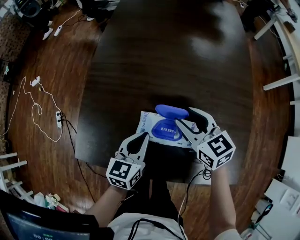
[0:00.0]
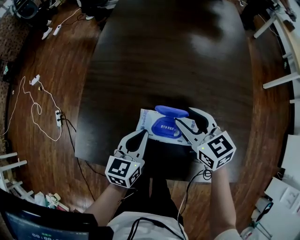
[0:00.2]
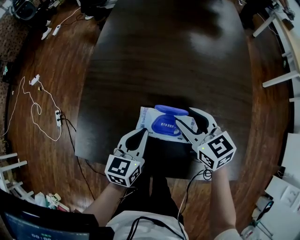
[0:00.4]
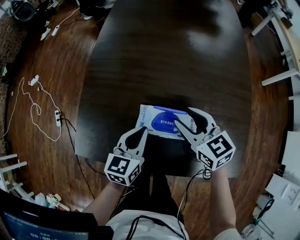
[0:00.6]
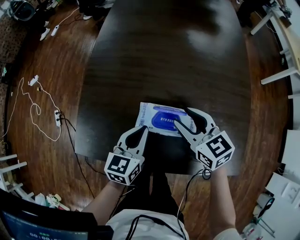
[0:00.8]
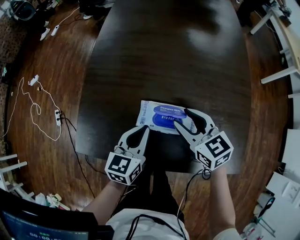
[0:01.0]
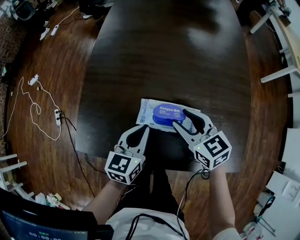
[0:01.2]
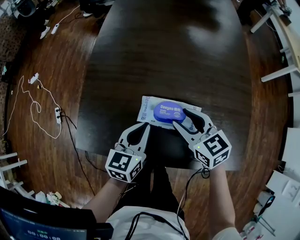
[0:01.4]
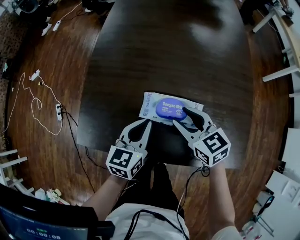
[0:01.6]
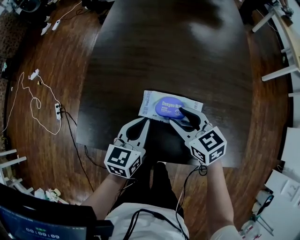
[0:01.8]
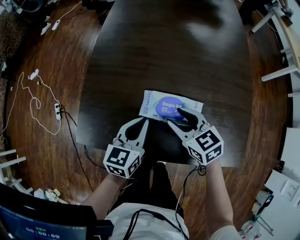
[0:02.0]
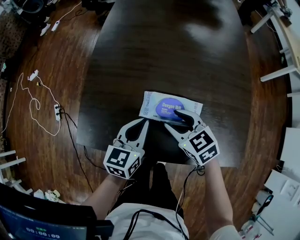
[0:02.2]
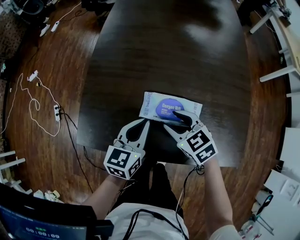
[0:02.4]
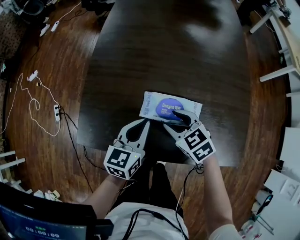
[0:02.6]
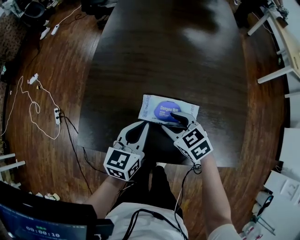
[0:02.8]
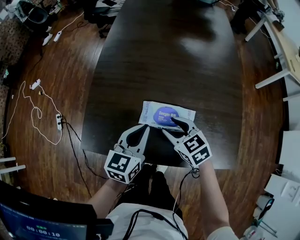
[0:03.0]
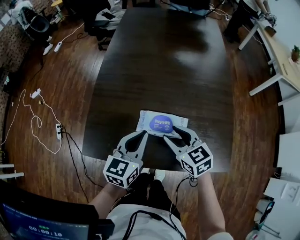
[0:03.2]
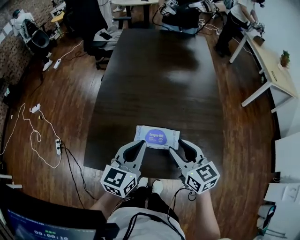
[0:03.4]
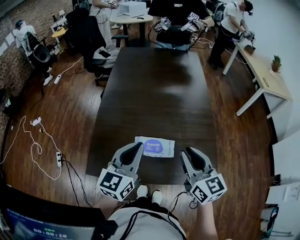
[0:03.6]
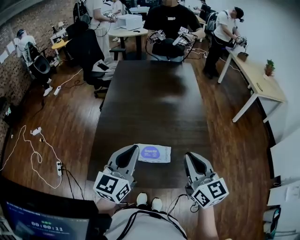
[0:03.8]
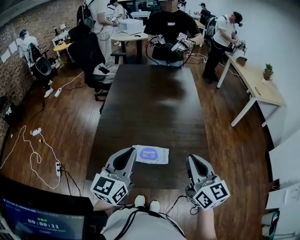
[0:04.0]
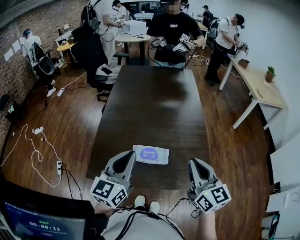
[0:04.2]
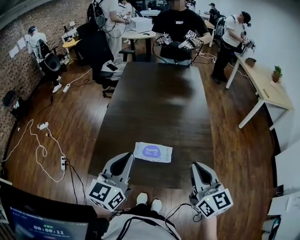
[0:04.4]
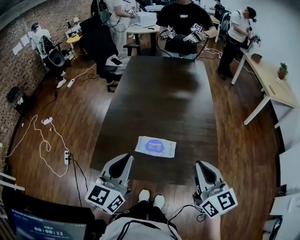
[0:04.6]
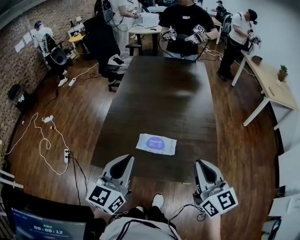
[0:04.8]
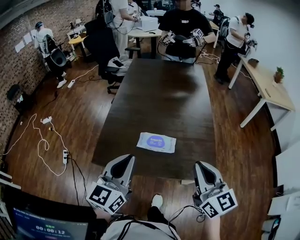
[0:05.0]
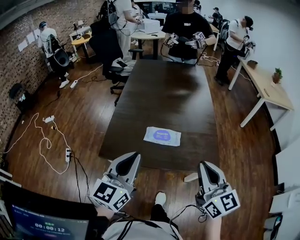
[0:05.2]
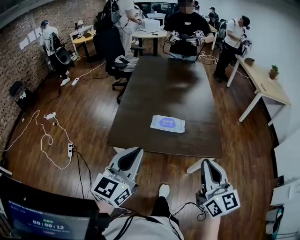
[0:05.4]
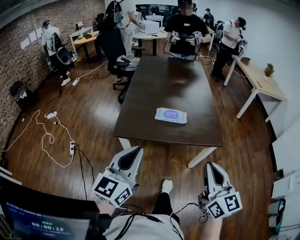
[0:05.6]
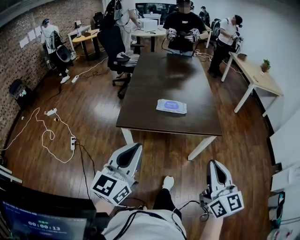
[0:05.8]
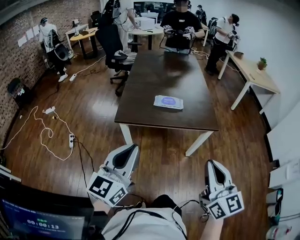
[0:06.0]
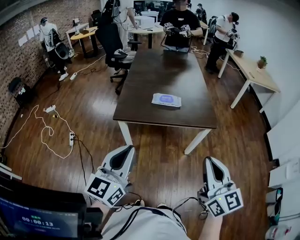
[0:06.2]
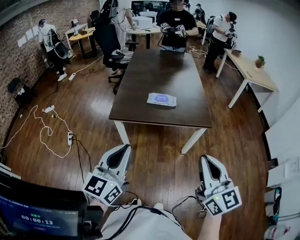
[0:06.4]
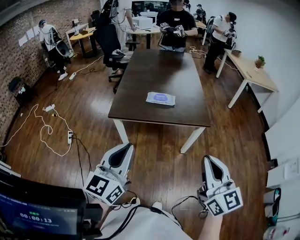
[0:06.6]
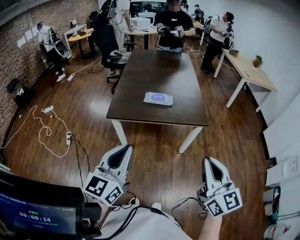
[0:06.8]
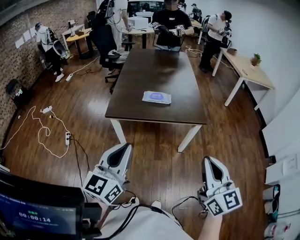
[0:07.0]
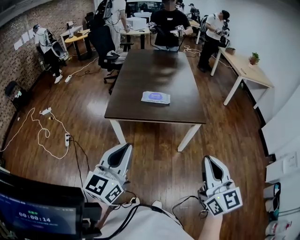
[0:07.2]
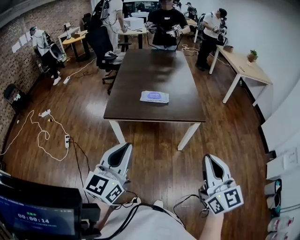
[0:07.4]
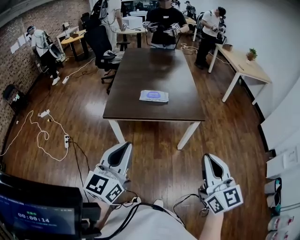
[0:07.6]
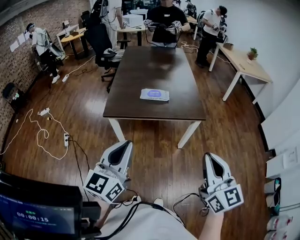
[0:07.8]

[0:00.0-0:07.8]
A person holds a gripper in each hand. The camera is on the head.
0.0 to 1.6 s: The right gripper heads backward, covering about 5 cm.
1.6 to 3.2 s: The right gripper ends up approximately 5 cm from where it was. The left gripper shifts roughly 10 cm upward.
3.2 to 4.6 s: The right gripper is displaced upward, to the right and backward by approximately 30 cm, rotates some 30 degrees, and closes up. The left gripper moves upward and backward, approximately 25 cm.
4.6 to 6.2 s: The pair of grippers is taken backward, approximately 50 cm.
6.2 to 7.8 s: The two grippers go approximately 5 cm to the right.

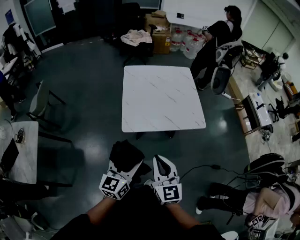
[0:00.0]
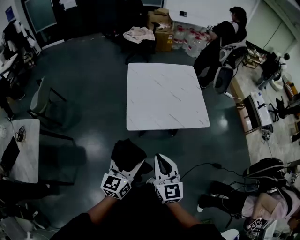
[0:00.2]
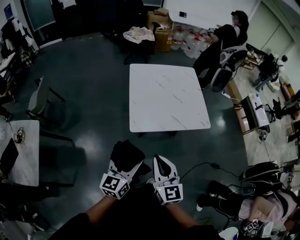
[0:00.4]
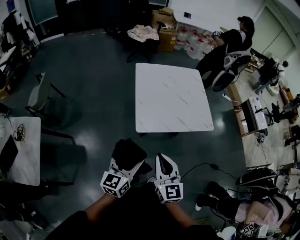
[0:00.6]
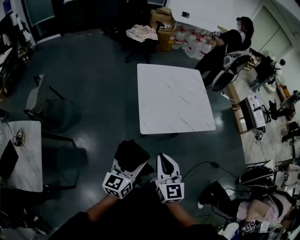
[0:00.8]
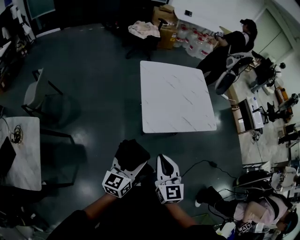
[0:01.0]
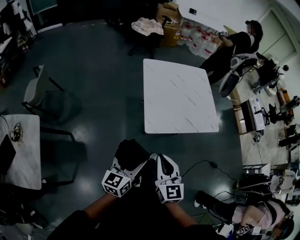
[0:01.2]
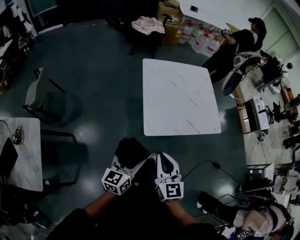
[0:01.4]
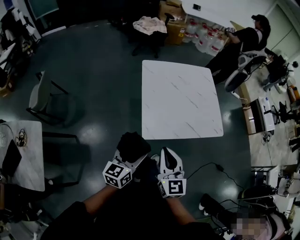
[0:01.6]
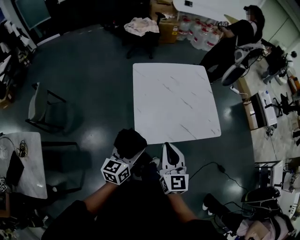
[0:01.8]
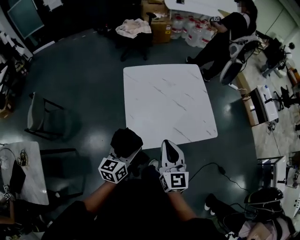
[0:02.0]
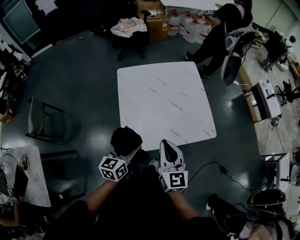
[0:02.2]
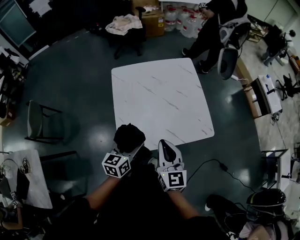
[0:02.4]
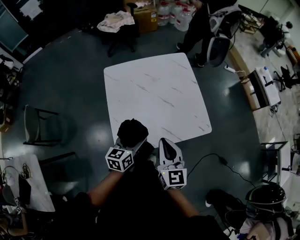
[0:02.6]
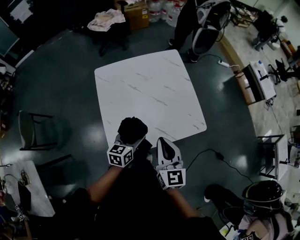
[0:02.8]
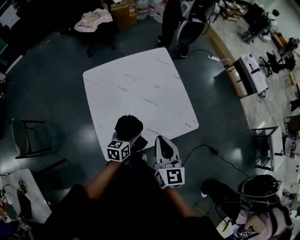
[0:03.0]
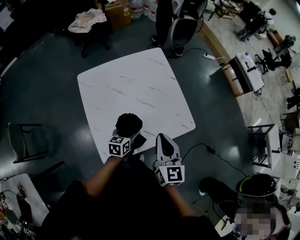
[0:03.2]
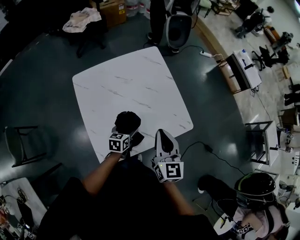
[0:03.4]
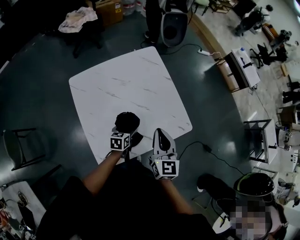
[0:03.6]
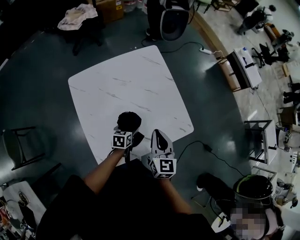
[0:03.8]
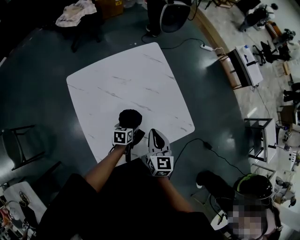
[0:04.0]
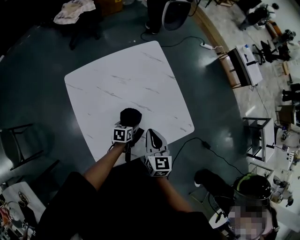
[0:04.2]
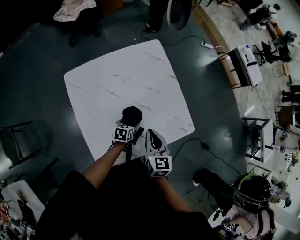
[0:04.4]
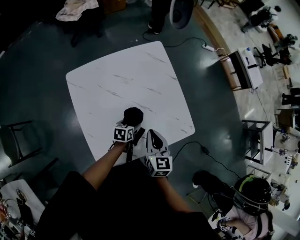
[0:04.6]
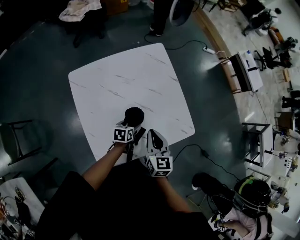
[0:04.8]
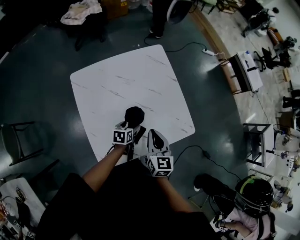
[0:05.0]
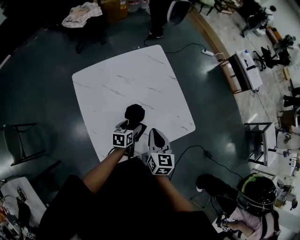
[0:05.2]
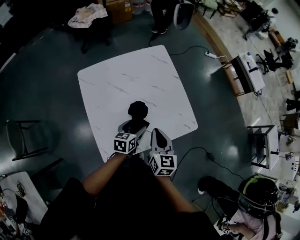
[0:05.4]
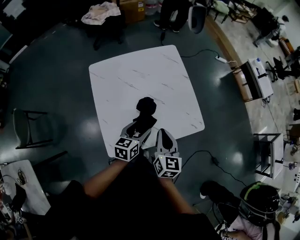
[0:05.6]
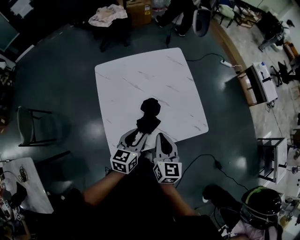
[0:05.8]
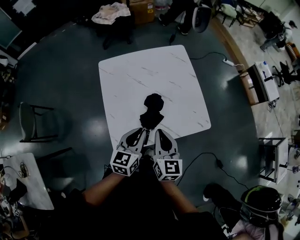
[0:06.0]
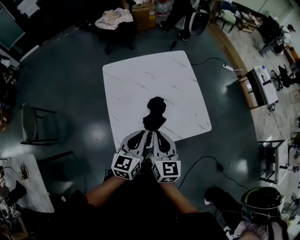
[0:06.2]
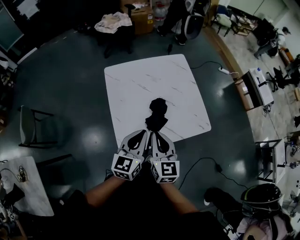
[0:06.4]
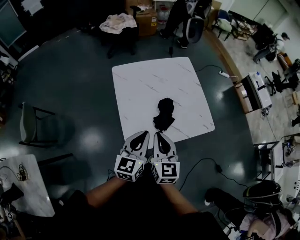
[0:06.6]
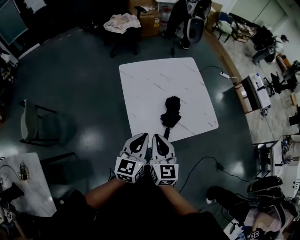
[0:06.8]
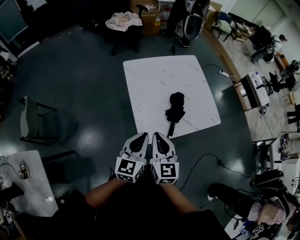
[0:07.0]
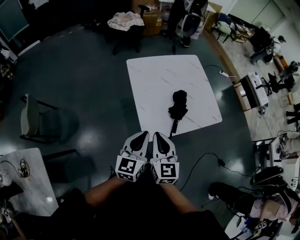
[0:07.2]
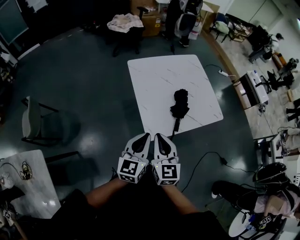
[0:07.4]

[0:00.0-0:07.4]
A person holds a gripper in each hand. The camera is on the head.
0.0 to 1.4 s: The left gripper goes some 20 cm to the left. The right gripper is displaced to the left and forward by about 20 cm.
1.4 to 3.0 s: The grippers both shift forward and to the right by about 40 cm. The right gripper changes its angle by roughly 20 degrees; the left gripper turns by about 30 degrees.
3.0 to 4.4 s: The grippers both shift downward and forward by some 20 cm. The left gripper swivels some 20 degrees.
4.4 to 6.0 s: The right gripper goes roughly 15 cm backward and upward. Meanwhile the left gripper goes approximately 30 cm upward and backward, angles its fingers upward, by approximately 30 degrees, and closes up.
6.0 to 7.4 s: The two grippers go approximately 30 cm to the left and backward.

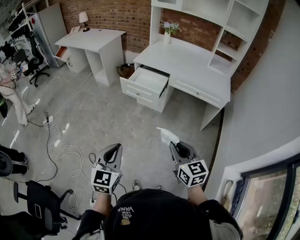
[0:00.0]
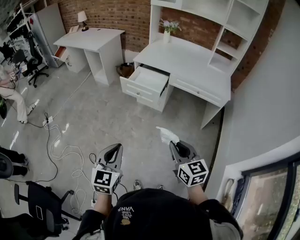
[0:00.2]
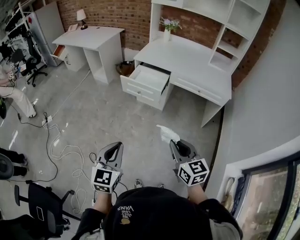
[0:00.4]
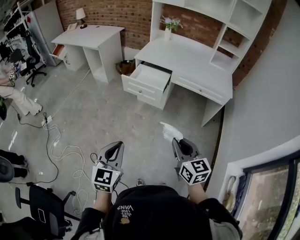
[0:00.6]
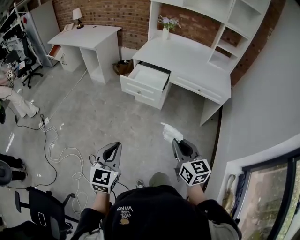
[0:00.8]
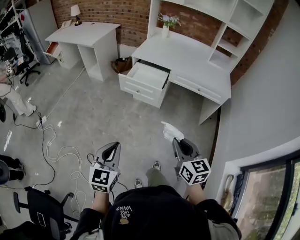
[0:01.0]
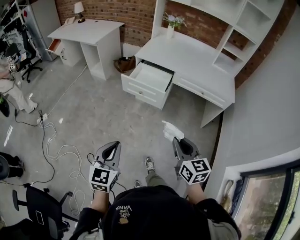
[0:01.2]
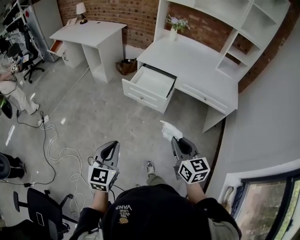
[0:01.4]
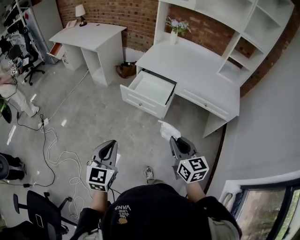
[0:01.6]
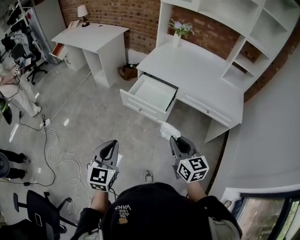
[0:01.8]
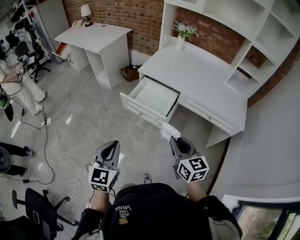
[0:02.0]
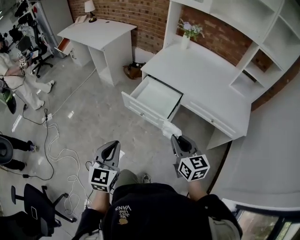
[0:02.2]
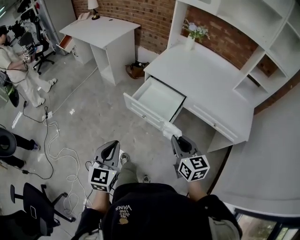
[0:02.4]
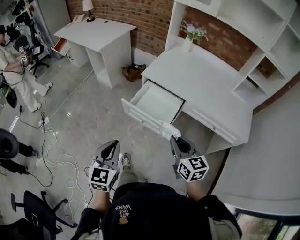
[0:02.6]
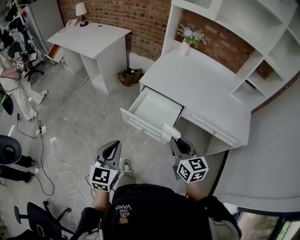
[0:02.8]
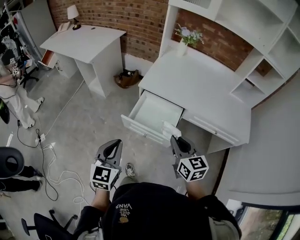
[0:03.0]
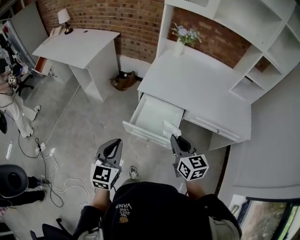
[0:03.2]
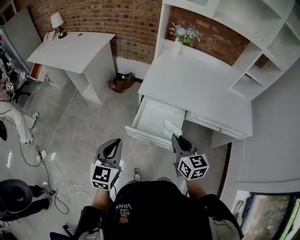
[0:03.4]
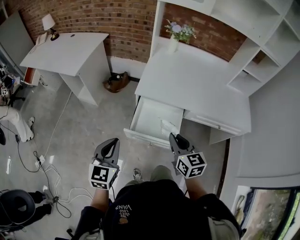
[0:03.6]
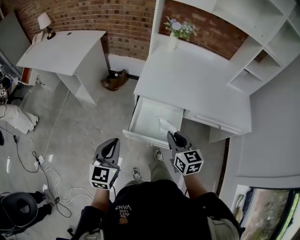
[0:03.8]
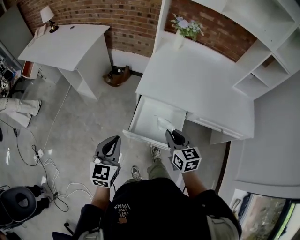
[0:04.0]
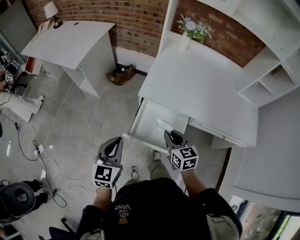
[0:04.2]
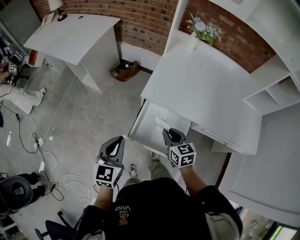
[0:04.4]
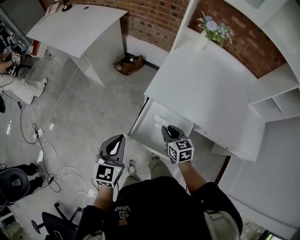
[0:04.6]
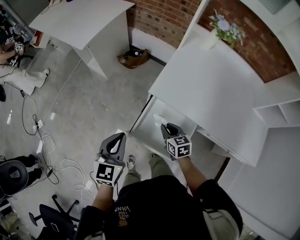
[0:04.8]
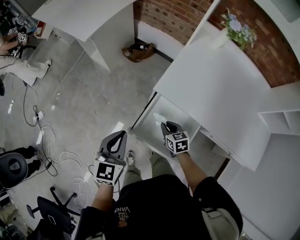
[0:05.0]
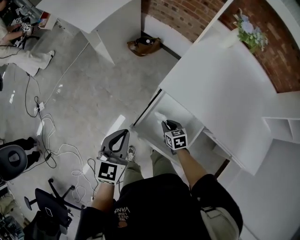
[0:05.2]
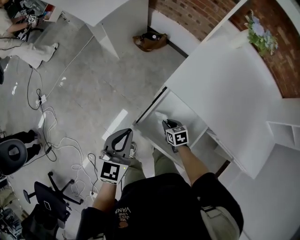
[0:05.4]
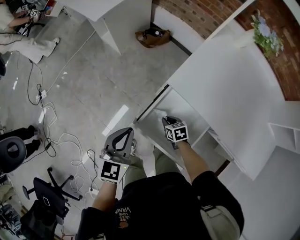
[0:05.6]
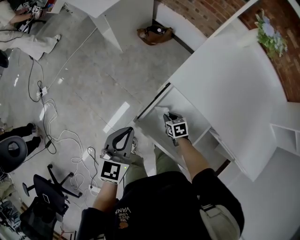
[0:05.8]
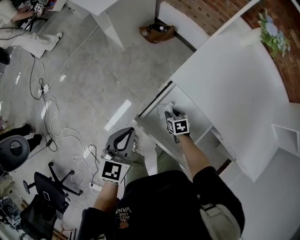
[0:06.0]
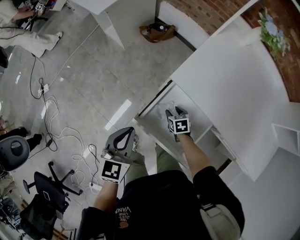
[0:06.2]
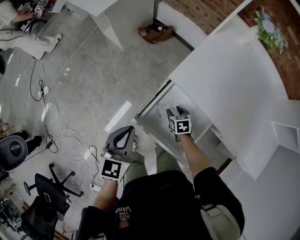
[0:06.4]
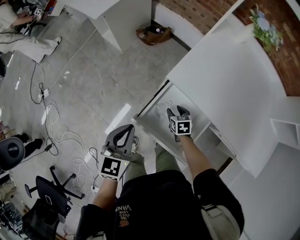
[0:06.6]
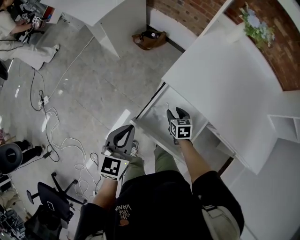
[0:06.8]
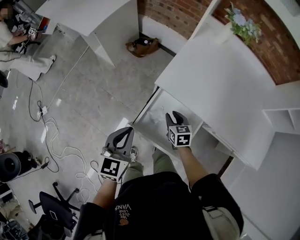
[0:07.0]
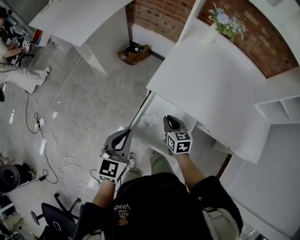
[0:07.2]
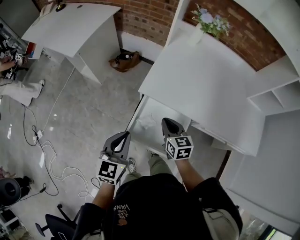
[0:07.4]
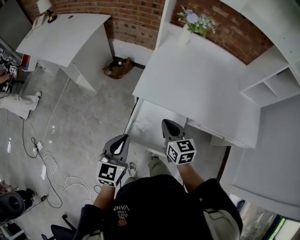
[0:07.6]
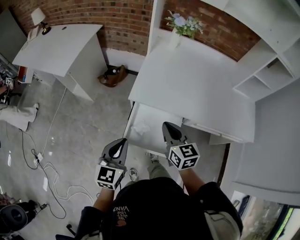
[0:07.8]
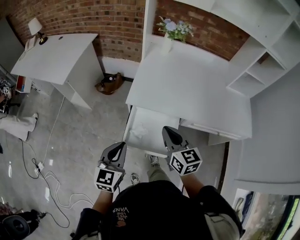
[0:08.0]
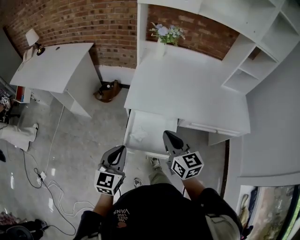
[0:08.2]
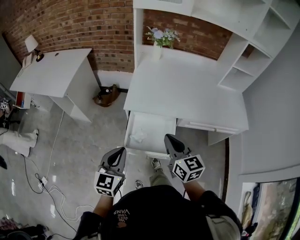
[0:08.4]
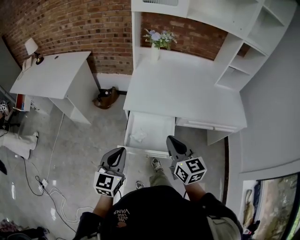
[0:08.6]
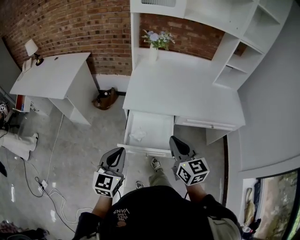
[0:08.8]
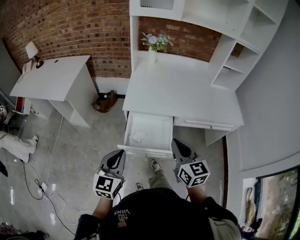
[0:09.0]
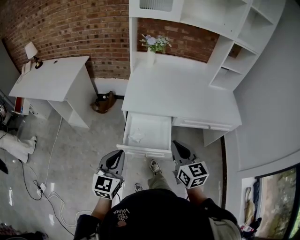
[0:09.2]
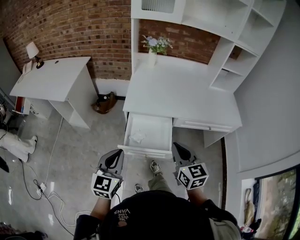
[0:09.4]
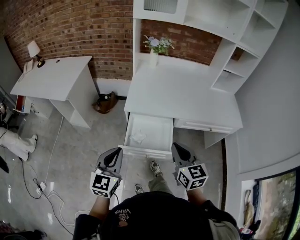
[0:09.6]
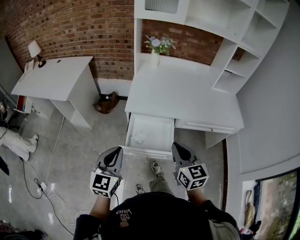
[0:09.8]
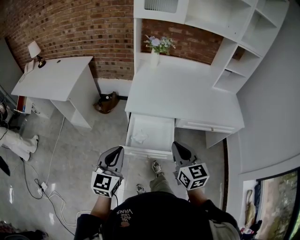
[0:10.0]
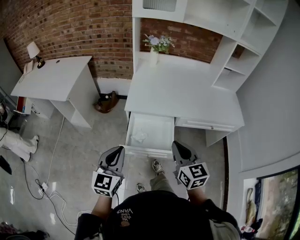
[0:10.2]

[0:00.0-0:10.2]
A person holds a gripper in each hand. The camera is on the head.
0.0 to 1.4 s: The left gripper travels forward and to the left by some 15 cm. Meanwhile the right gripper travels forward by approximately 15 cm.
1.4 to 3.0 s: Both grippers move forward, about 35 cm.
3.0 to 4.4 s: The left gripper is displaced forward by about 20 cm, while the right gripper travels forward and downward by some 25 cm.
4.4 to 5.8 s: The right gripper heads downward, covering approximately 25 cm, and changes its angle by some 40 degrees. Meanwhile the left gripper shifts approximately 10 cm downward.
5.8 to 7.2 s: The right gripper is displaced upward by approximately 20 cm, turns by about 30 degrees, and opens, then closes once more, while the left gripper ends up some 5 cm from where it was.
7.2 to 8.8 s: The left gripper moves backward and upward, some 15 cm, and changes its angle by some 20 degrees. The right gripper moves upward and backward, roughly 30 cm, and changes its angle by about 30 degrees.
8.8 to 10.2 s: There are only small adjustments of the grippers.
